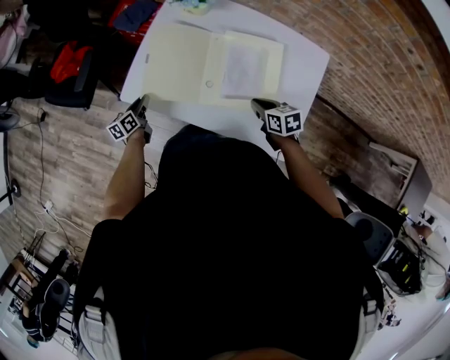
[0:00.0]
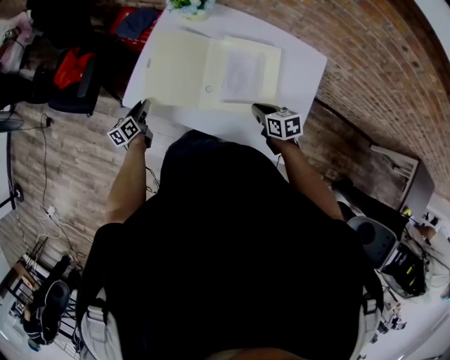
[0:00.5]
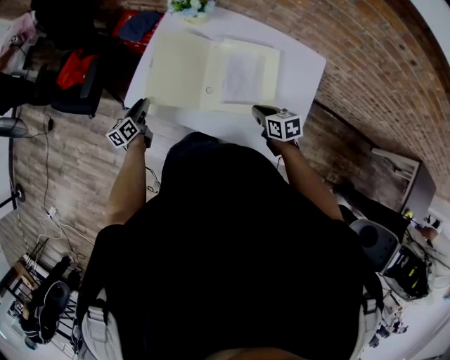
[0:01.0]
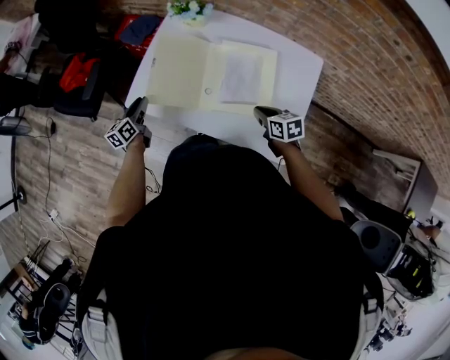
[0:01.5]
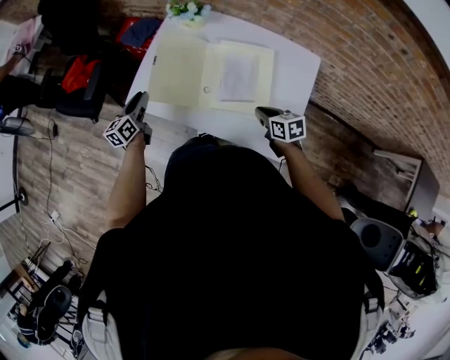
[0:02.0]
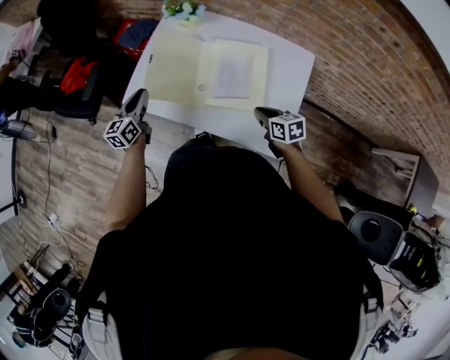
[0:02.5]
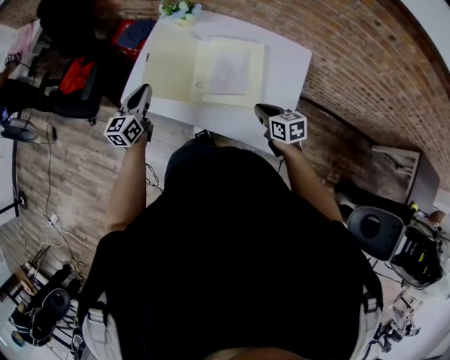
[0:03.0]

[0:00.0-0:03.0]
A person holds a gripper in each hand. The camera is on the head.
0:00.0 to 0:01.5: The left gripper shifts approximately 10 cm upward.
0:01.5 to 0:03.0: The left gripper goes roughly 15 cm upward and to the right, and turns by some 20 degrees. The right gripper travels backward by some 5 cm.

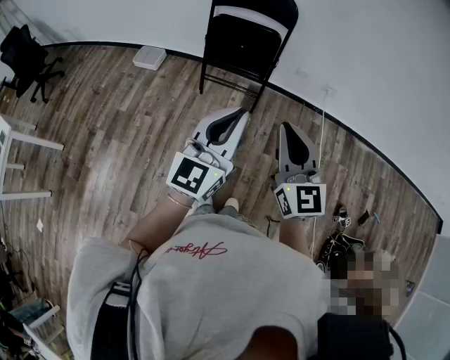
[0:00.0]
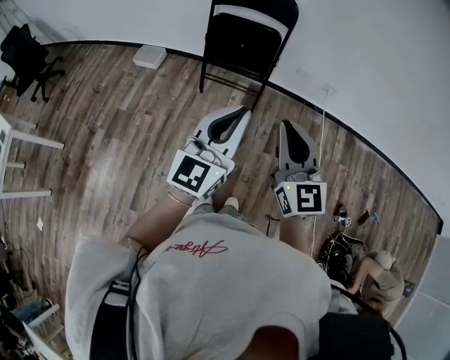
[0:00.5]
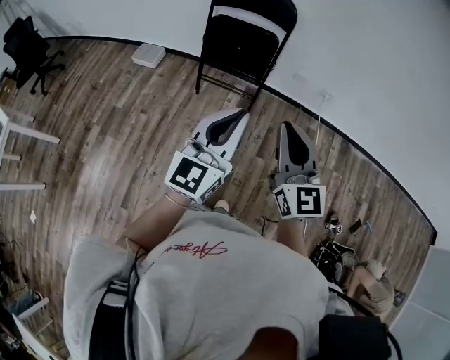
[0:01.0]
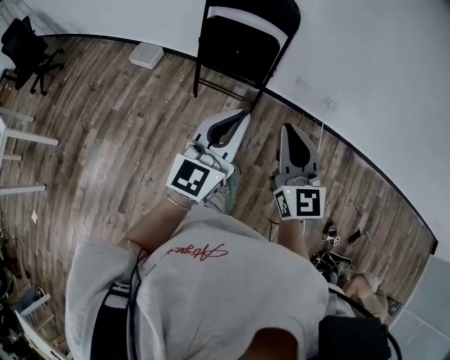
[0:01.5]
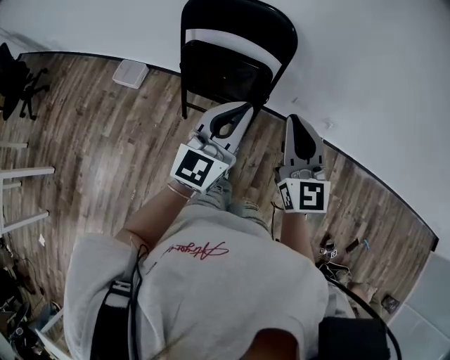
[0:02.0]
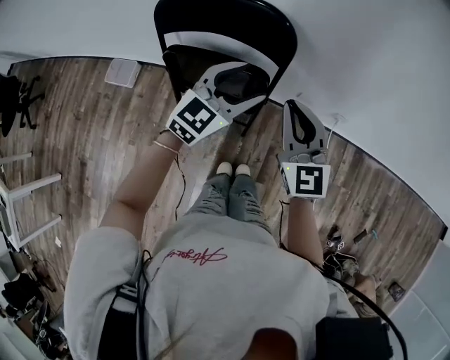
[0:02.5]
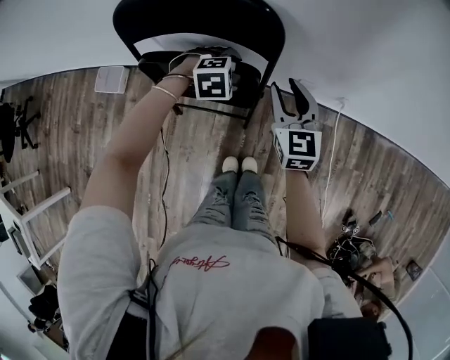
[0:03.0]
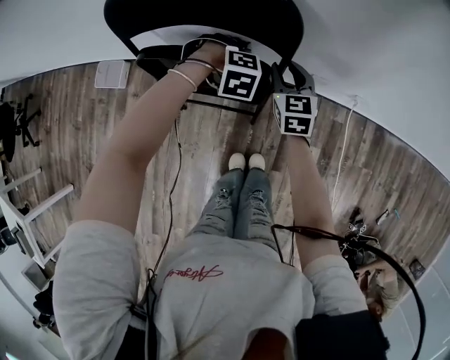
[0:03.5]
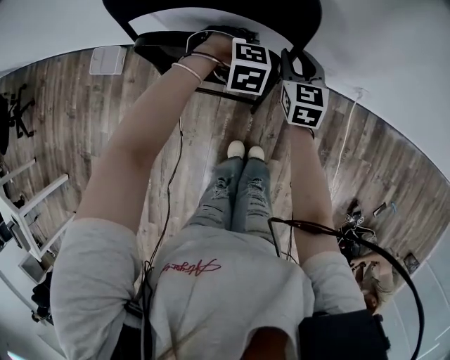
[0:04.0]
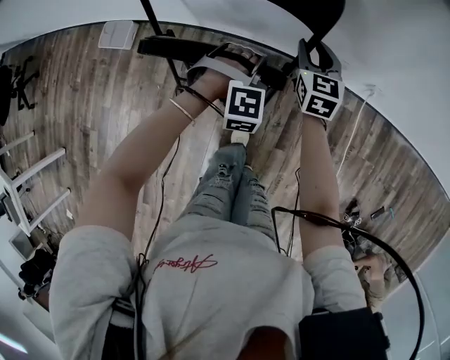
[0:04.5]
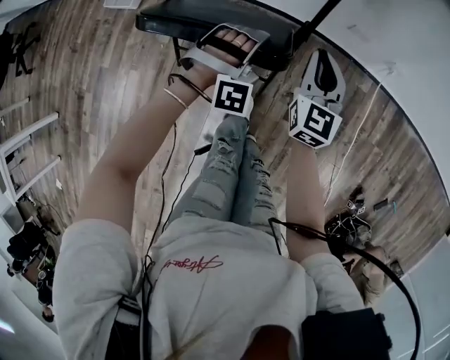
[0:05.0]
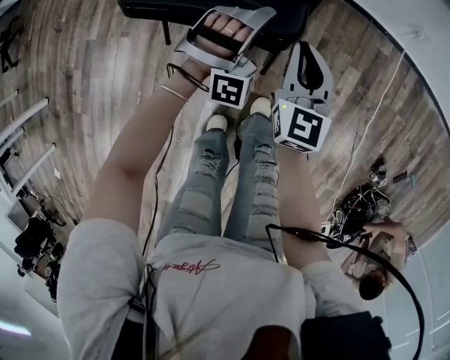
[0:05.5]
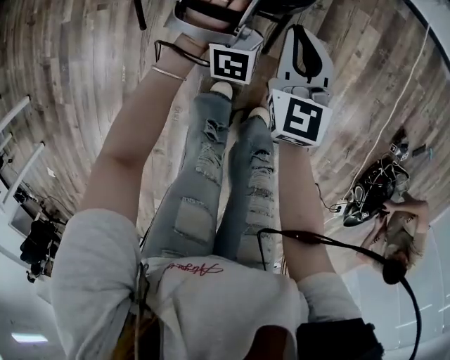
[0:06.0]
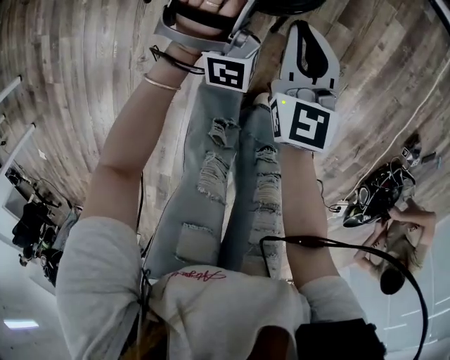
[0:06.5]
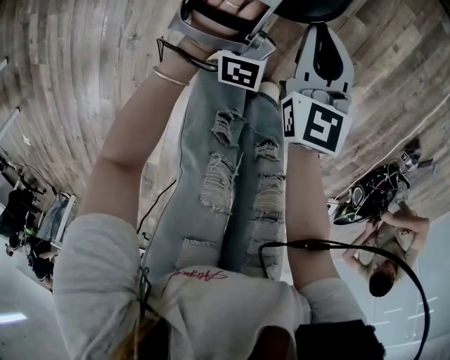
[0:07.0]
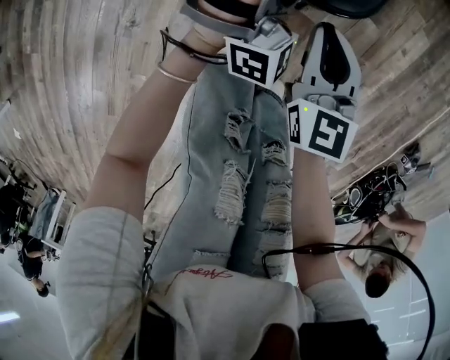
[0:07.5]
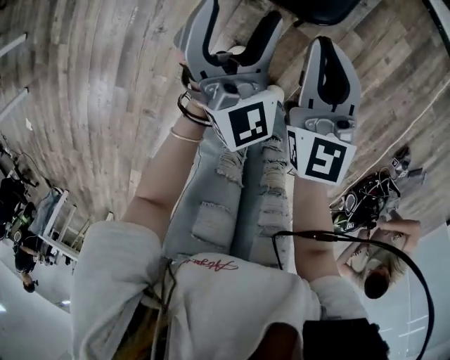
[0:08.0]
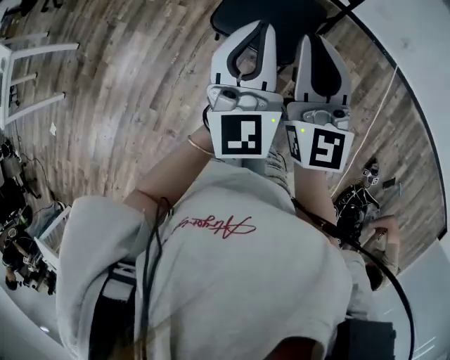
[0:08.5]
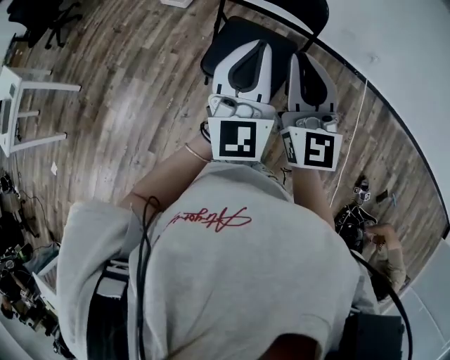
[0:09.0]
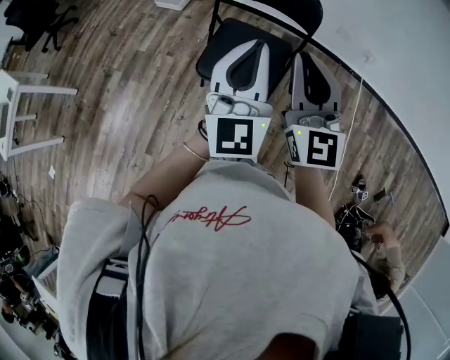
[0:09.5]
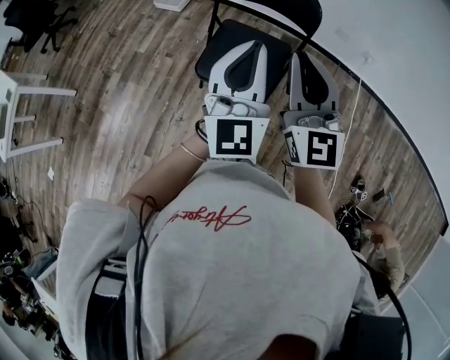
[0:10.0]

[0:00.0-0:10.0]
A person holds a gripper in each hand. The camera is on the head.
0:00.0 to 0:02.0: The two grippers go about 35 cm forward.
0:02.0 to 0:04.0: The grippers both shift downward by about 30 cm. The right gripper turns by approximately 30 degrees, and opens, while the left gripper tips its fingers downward by some 80 degrees, and opens and closes again.
0:04.0 to 0:06.0: The left gripper changes place by about 40 cm, and tilts its fingers about 70 degrees upward. The right gripper moves some 50 cm, and closes its fingers.
0:06.0 to 0:08.0: The left gripper moves backward and to the left, approximately 25 cm, twists approximately 60 degrees counterclockwise, seen from behind, and opens; the right gripper heads backward and to the left, covering about 15 cm, and moves about 10 cm downward and comes back.
0:08.0 to 0:10.0: The two grippers go about 40 cm upward. The left gripper rotates some 30 degrees, and closes. The right gripper swivels about 20 degrees.

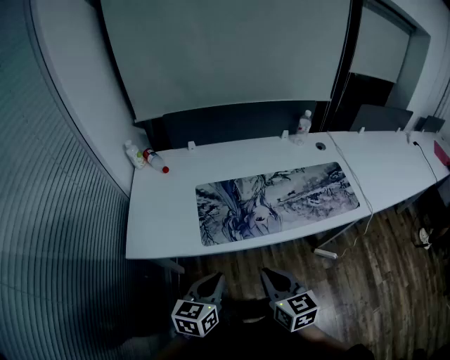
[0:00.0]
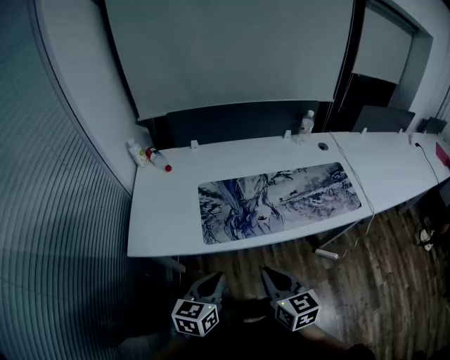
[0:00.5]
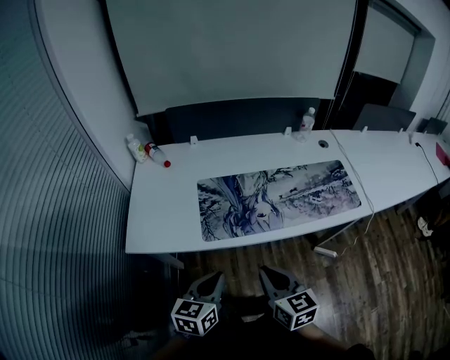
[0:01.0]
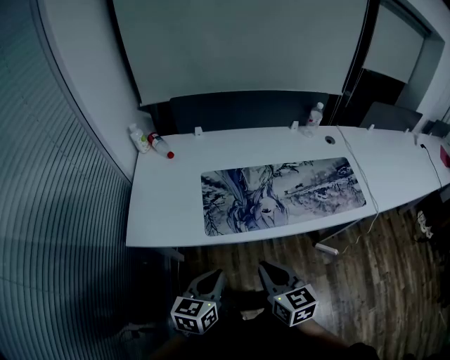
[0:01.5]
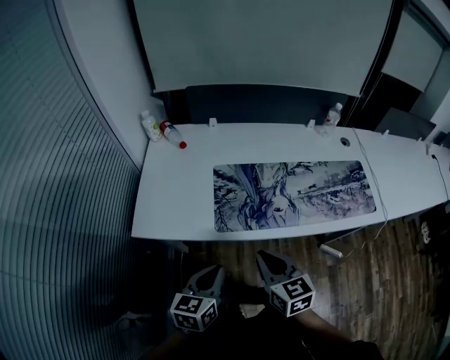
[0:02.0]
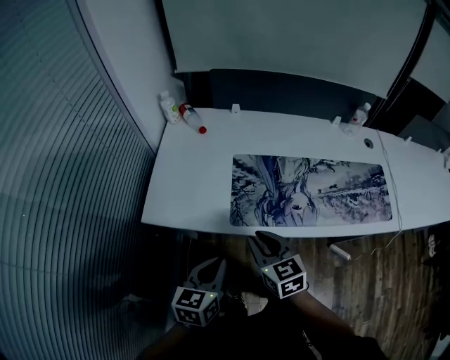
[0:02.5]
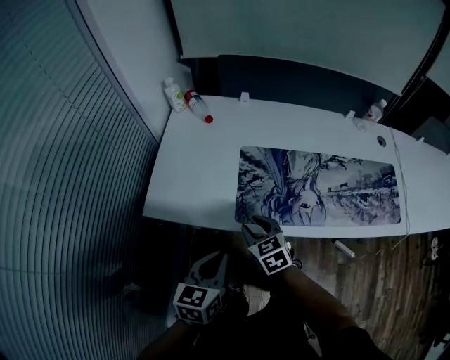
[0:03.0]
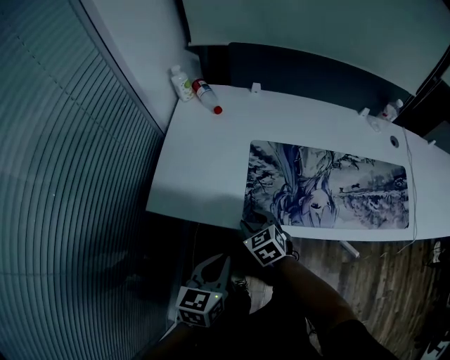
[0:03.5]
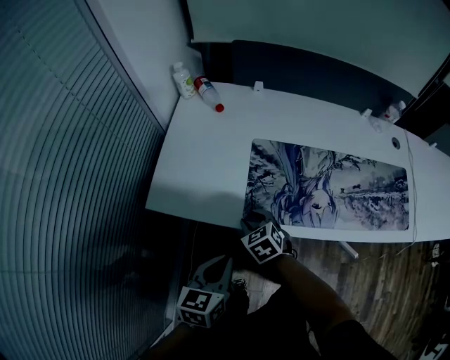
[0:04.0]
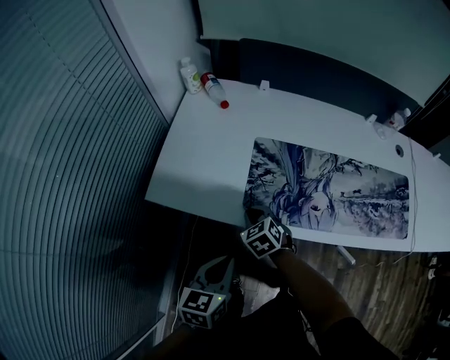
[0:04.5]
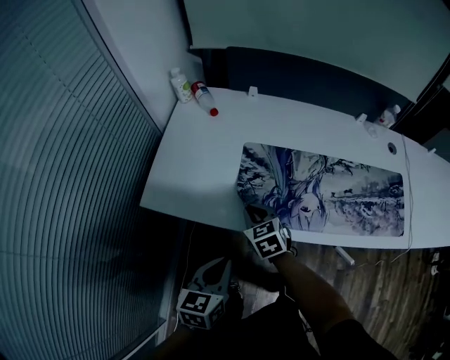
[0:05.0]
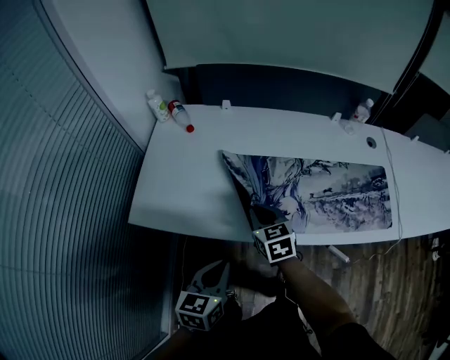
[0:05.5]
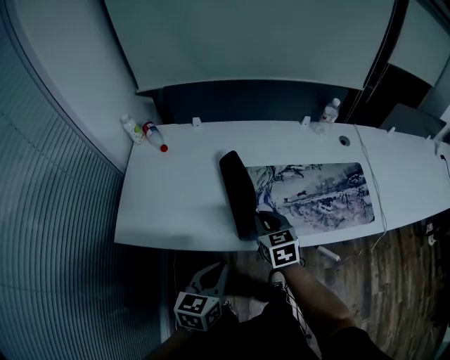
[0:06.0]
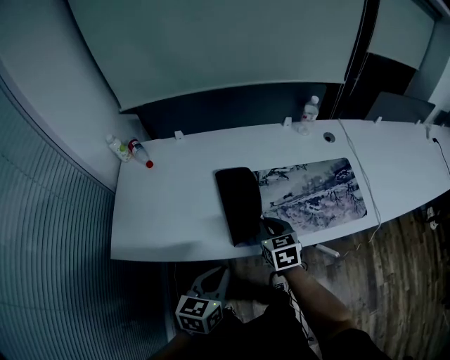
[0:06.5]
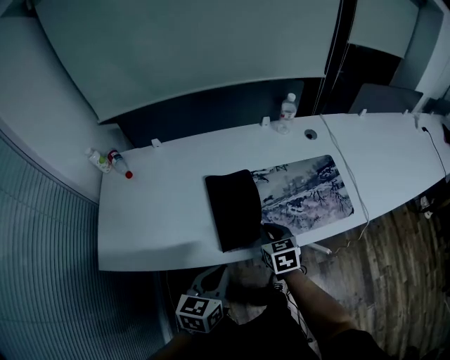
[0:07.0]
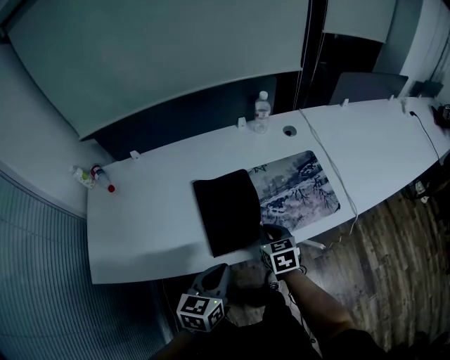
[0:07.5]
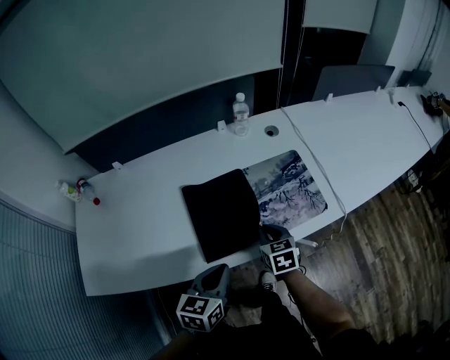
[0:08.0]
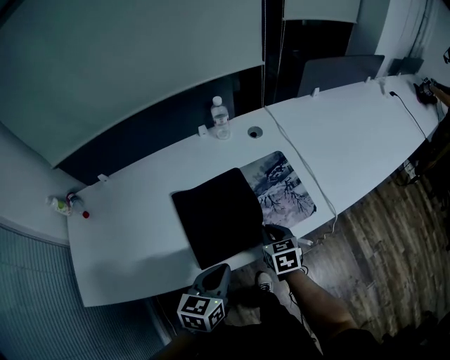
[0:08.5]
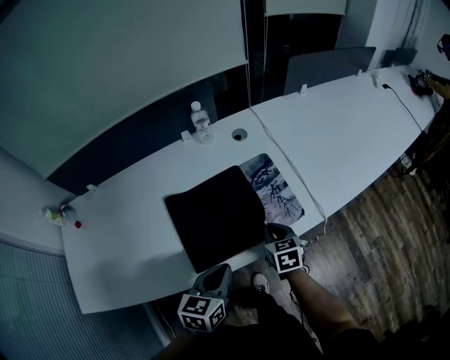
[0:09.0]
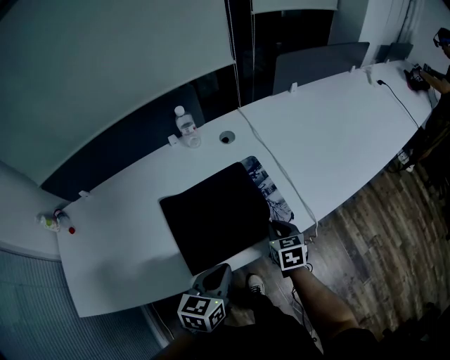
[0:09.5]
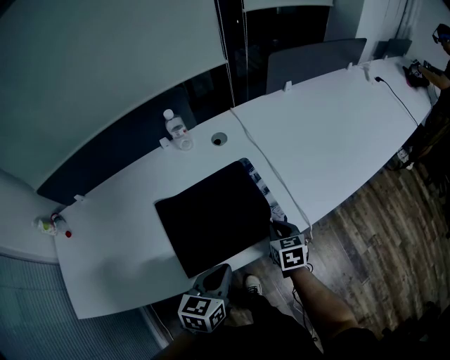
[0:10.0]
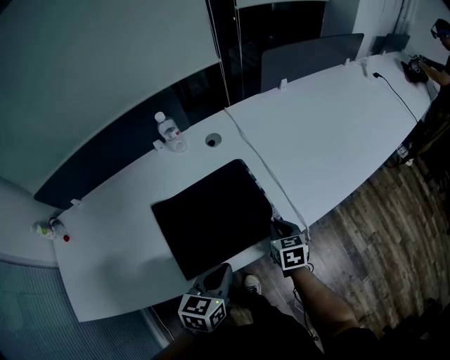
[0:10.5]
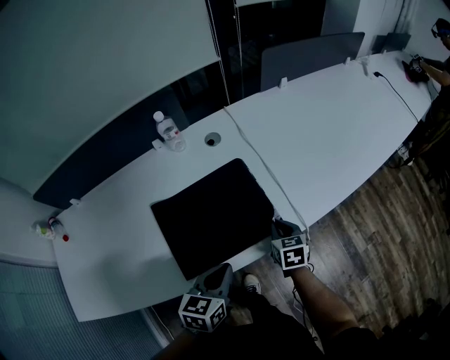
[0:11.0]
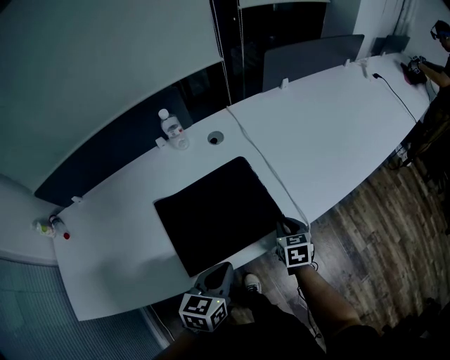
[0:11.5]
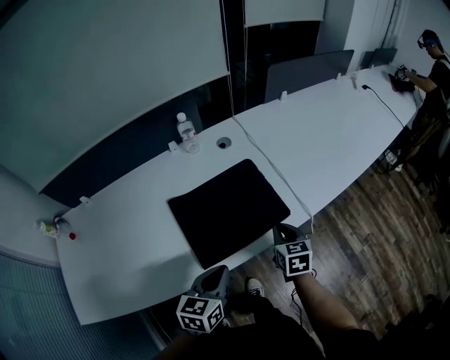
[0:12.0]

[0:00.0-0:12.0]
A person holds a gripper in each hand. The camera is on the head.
0:00.0 to 0:02.0: The right gripper shifts roughly 5 cm to the left; the left gripper shifts by roughly 5 cm.
0:02.0 to 0:04.0: The left gripper shifts by some 5 cm. Meanwhile the right gripper shifts roughly 25 cm downward, forward and to the left, changes its angle by roughly 40 degrees, and opens up.
0:04.0 to 0:06.0: The left gripper moves to the right, about 15 cm. The right gripper goes about 25 cm to the right and upward, swivels some 30 degrees, and closes.
0:06.0 to 0:08.0: The left gripper is displaced to the right and forward by approximately 25 cm; the right gripper goes roughly 25 cm to the right, and turns by about 20 degrees.
0:08.0 to 0:10.0: The grippers both shift to the right and forward by roughly 20 cm.
0:10.0 to 0:12.0: The right gripper moves upward and backward, approximately 10 cm, while the left gripper shifts by some 5 cm.

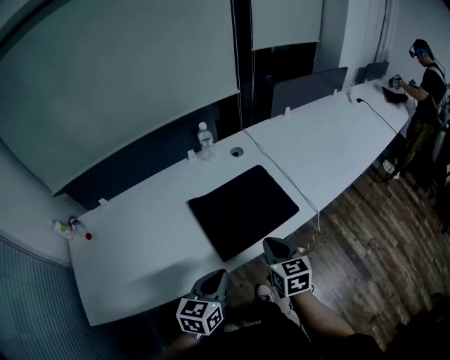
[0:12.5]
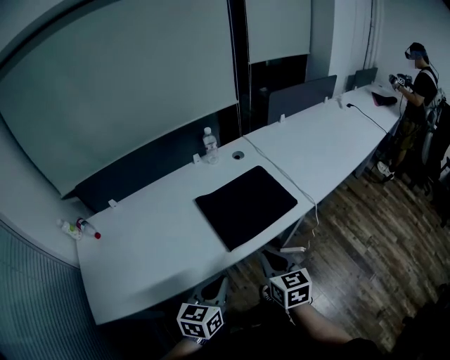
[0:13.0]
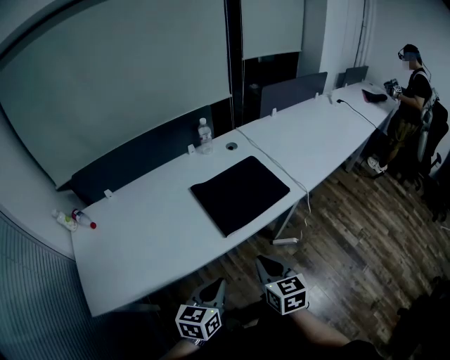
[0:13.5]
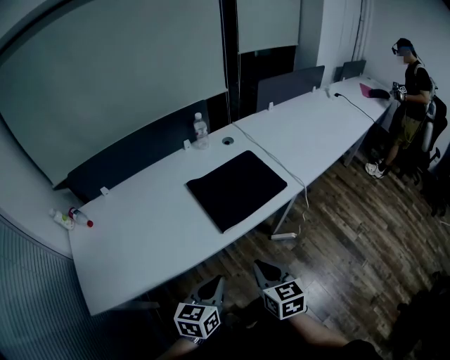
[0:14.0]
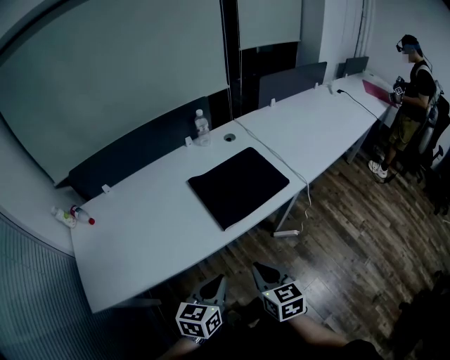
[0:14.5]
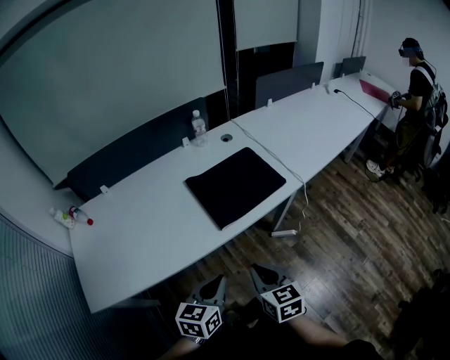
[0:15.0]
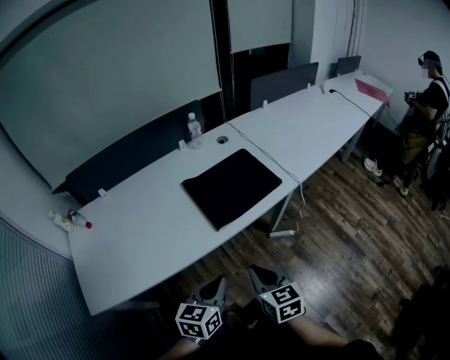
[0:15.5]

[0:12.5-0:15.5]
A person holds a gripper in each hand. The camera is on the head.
0:12.5 to 0:14.0: The grippers both shift backward by some 15 cm.
0:14.0 to 0:15.5: The grippers move only a little.
